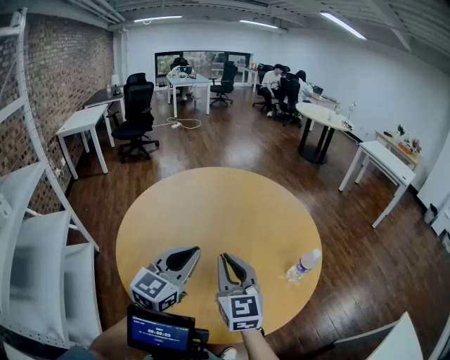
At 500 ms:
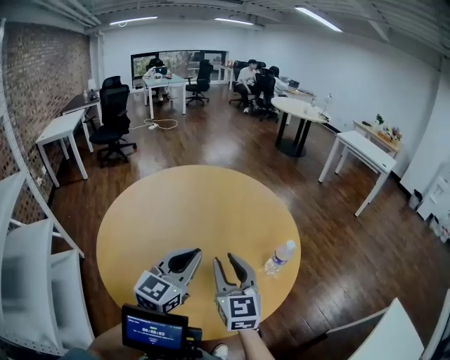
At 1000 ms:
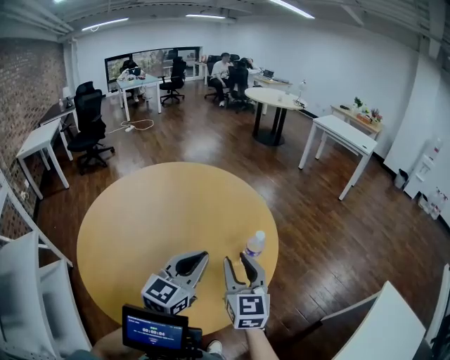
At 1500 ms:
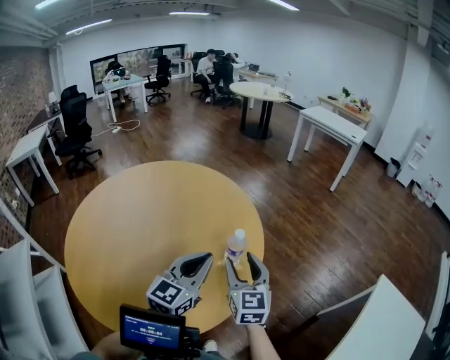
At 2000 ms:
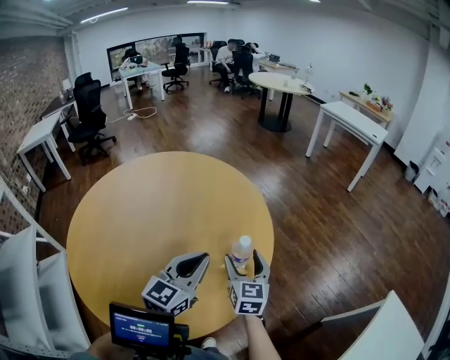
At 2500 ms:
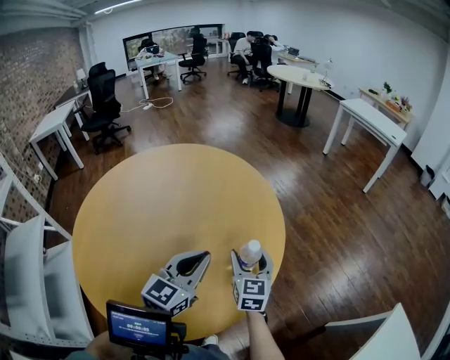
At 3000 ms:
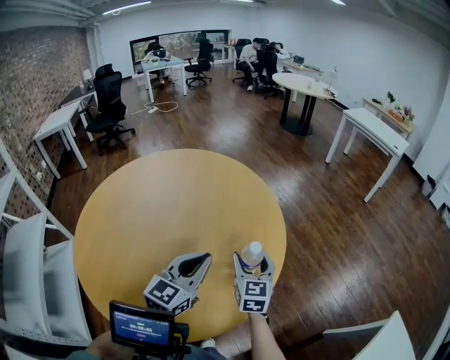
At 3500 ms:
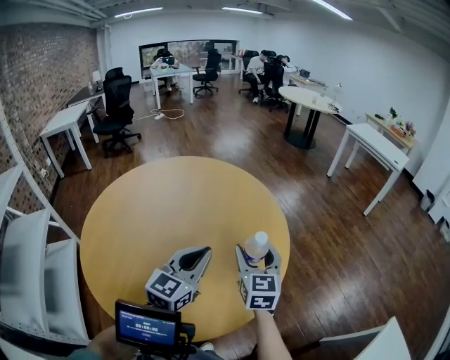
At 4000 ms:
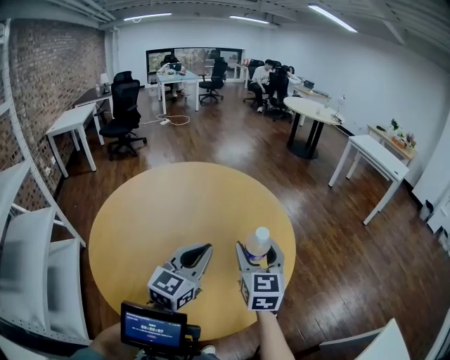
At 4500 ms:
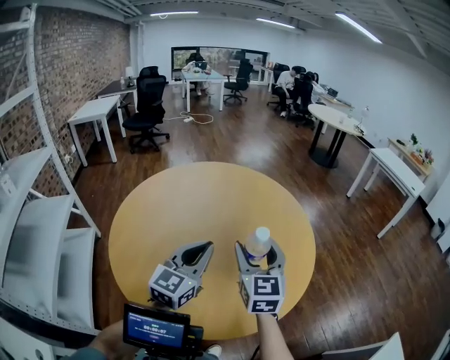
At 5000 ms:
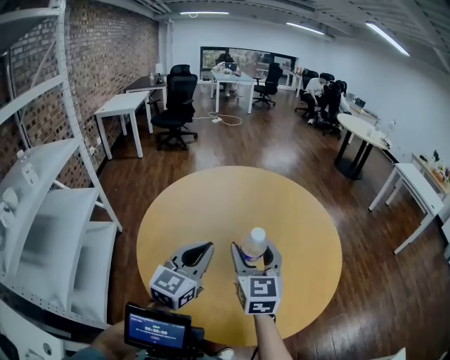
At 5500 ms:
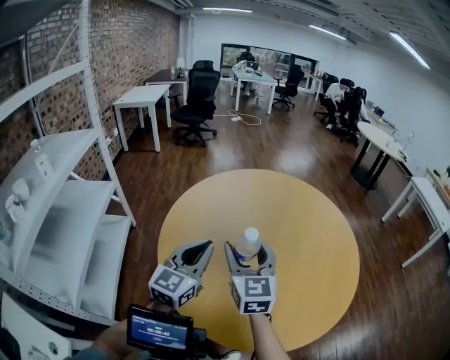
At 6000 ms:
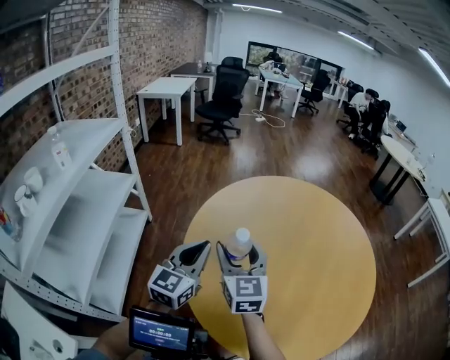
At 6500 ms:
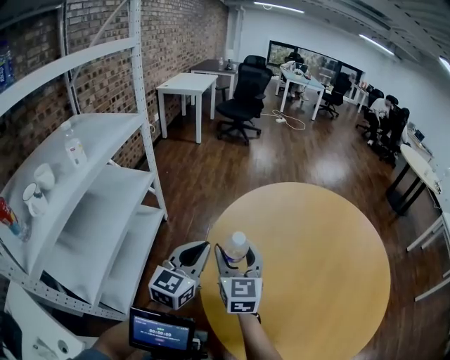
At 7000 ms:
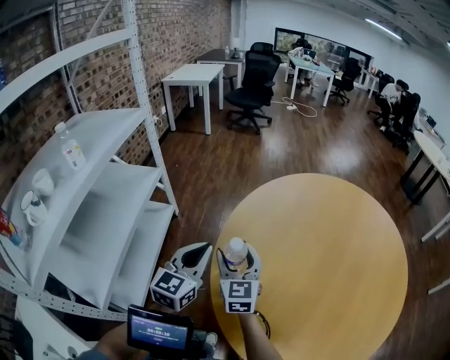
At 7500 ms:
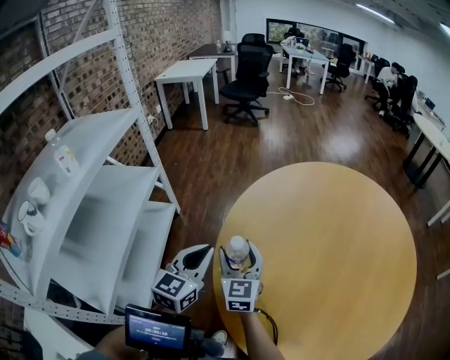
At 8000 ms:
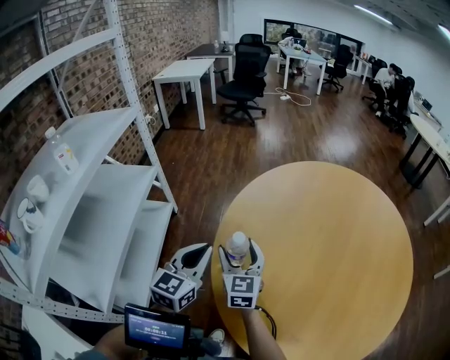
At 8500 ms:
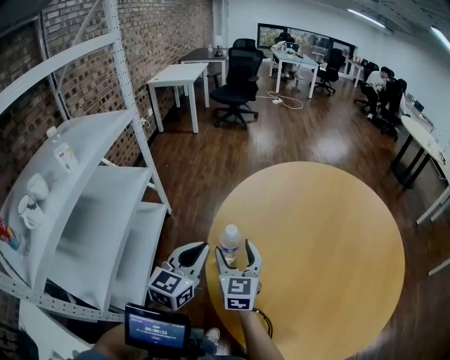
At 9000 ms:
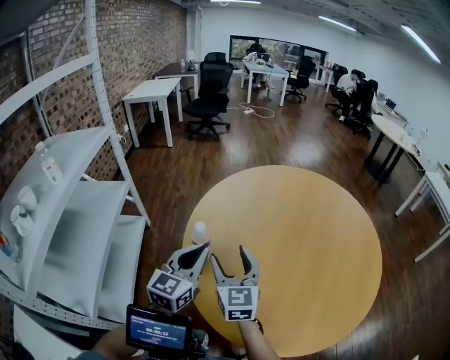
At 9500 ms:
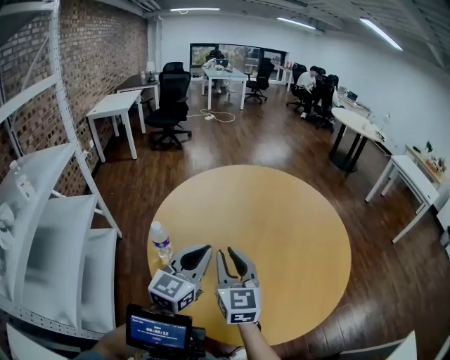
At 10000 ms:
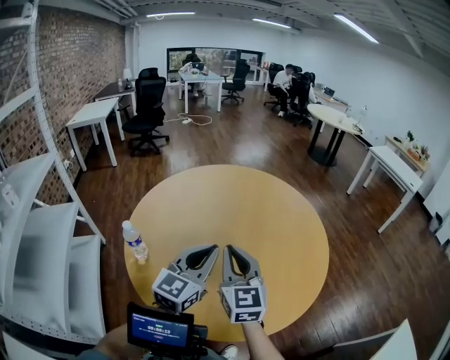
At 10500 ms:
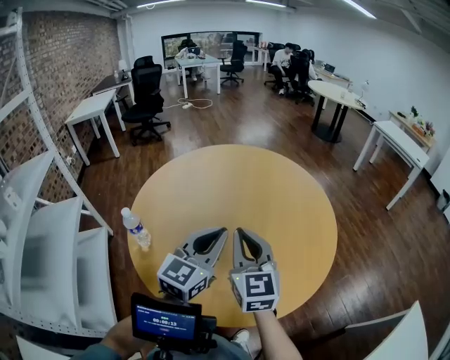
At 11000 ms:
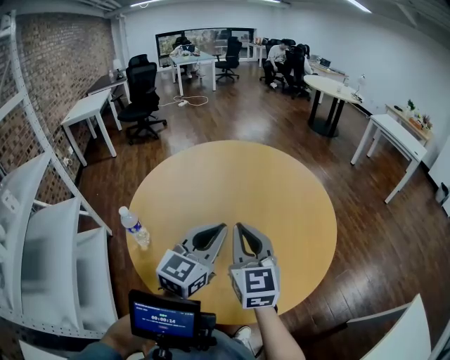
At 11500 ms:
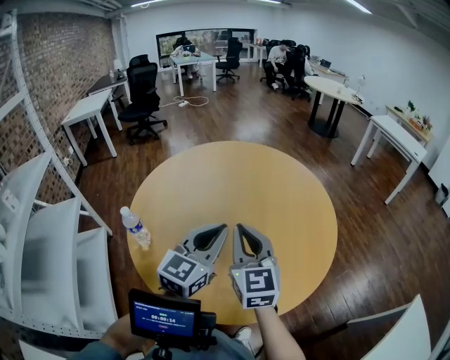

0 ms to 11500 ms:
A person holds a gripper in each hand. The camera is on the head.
0 ms to 2000 ms: The right gripper travels to the right, downward and forward by roughly 35 cm, changes its angle by approximately 30 degrees, and opens its fingers. The left gripper heads to the right, covering approximately 25 cm.
2000 ms to 4000 ms: The left gripper is displaced to the left by approximately 10 cm. Meanwhile the right gripper moves upward and to the left, approximately 15 cm.
4000 ms to 6000 ms: The two grippers travel together, roughly 50 cm. The left gripper swivels some 30 degrees; the right gripper changes its angle by about 30 degrees.
6000 ms to 7500 ms: The right gripper travels downward, to the left and forward by approximately 20 cm; the left gripper travels to the left, downward and forward by some 15 cm.
7500 ms to 9500 ms: The right gripper moves to the right, upward and backward, some 30 cm, and closes its fingers, while the left gripper is displaced to the right by about 25 cm, and changes its angle by some 20 degrees.
9500 ms to 11500 ms: Both grippers move to the right, approximately 15 cm.

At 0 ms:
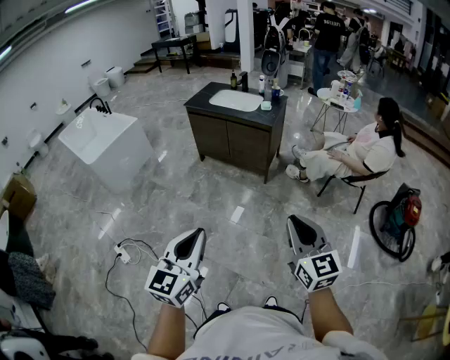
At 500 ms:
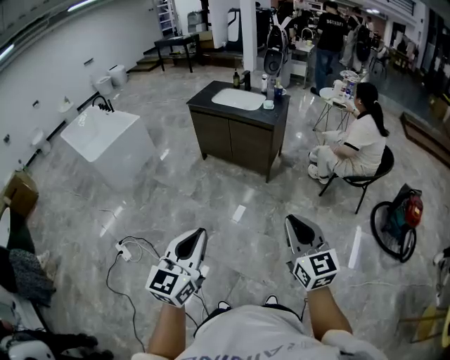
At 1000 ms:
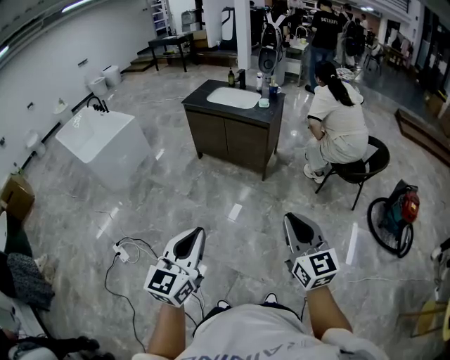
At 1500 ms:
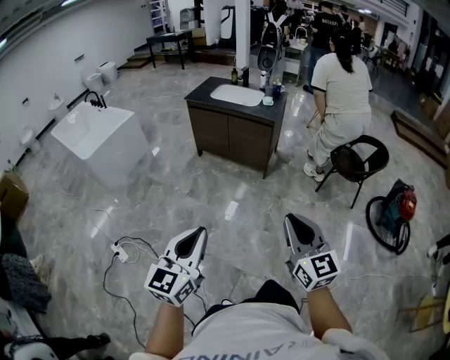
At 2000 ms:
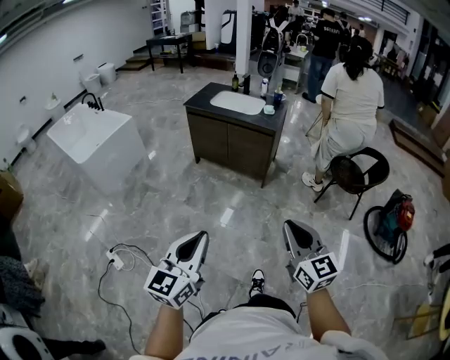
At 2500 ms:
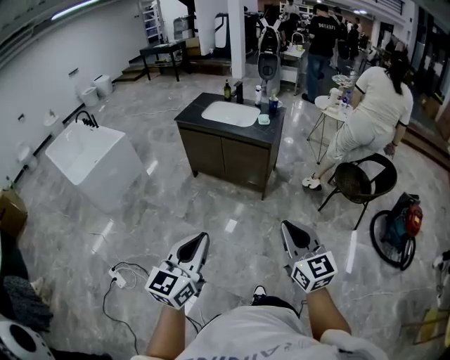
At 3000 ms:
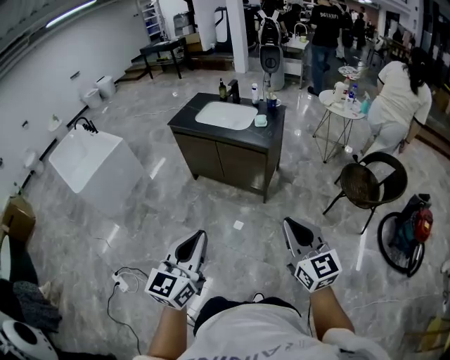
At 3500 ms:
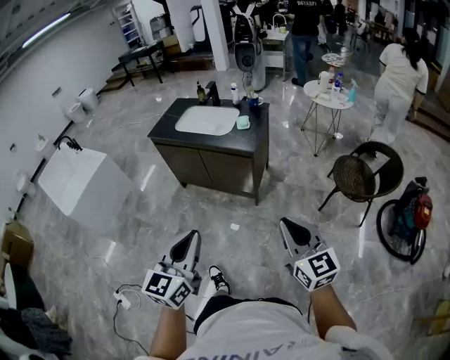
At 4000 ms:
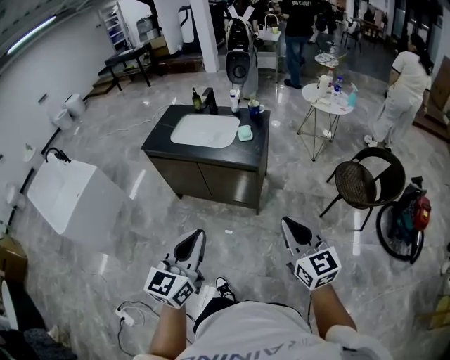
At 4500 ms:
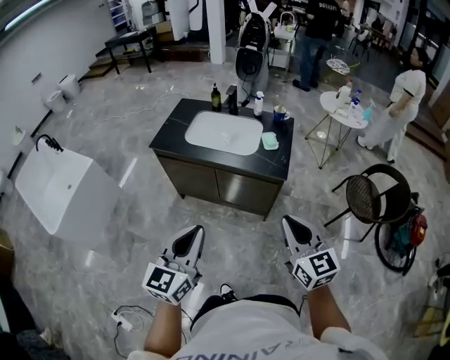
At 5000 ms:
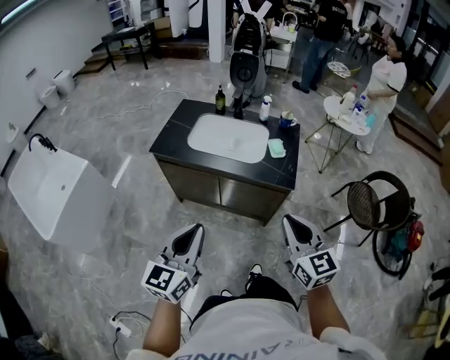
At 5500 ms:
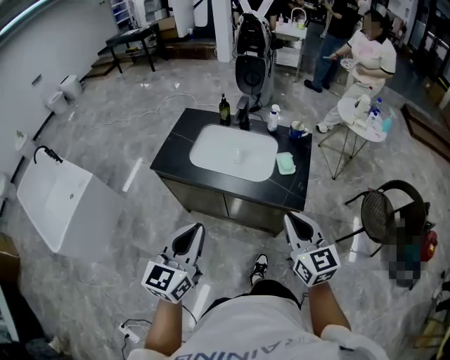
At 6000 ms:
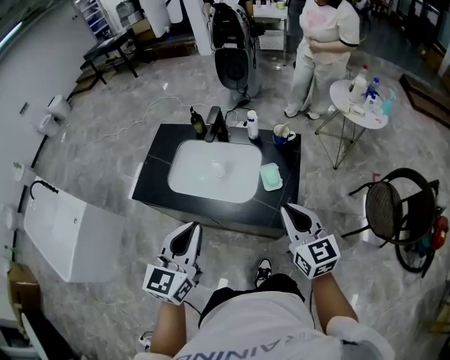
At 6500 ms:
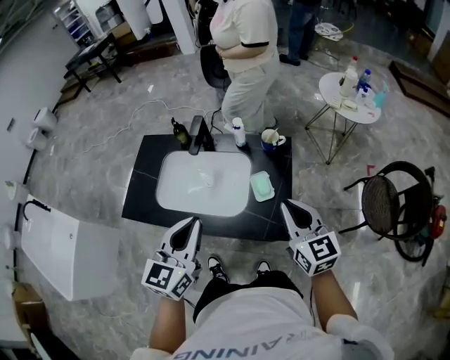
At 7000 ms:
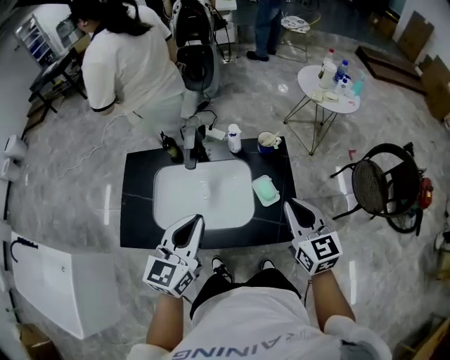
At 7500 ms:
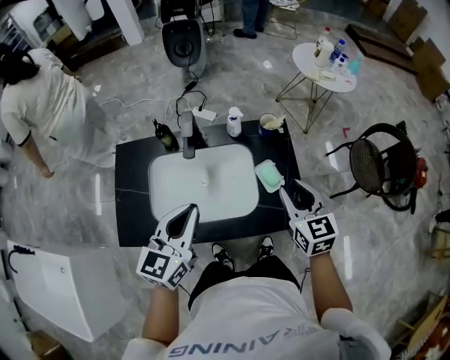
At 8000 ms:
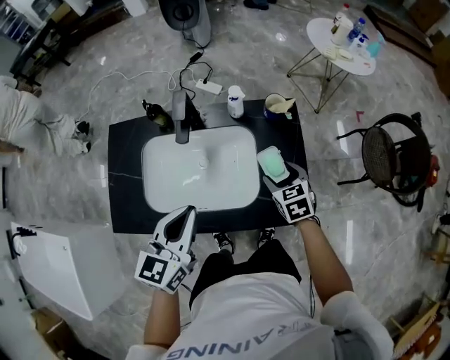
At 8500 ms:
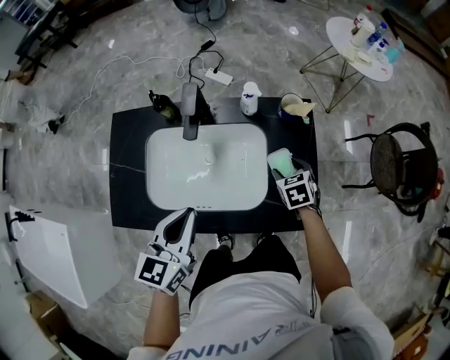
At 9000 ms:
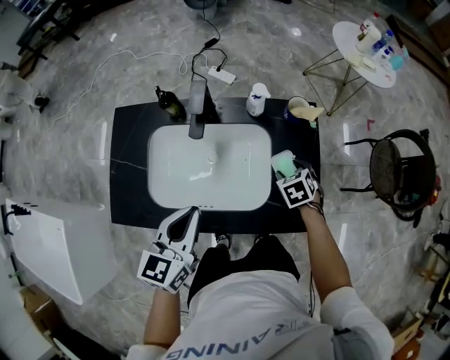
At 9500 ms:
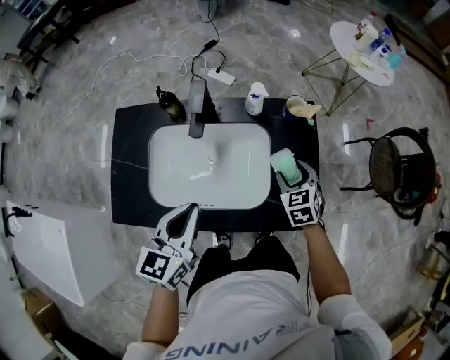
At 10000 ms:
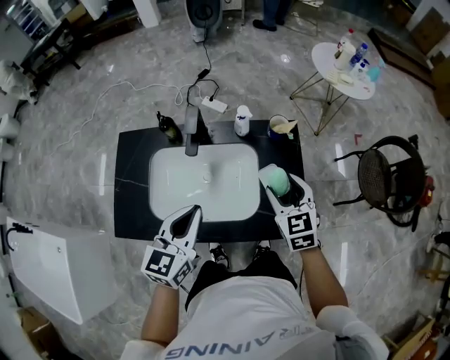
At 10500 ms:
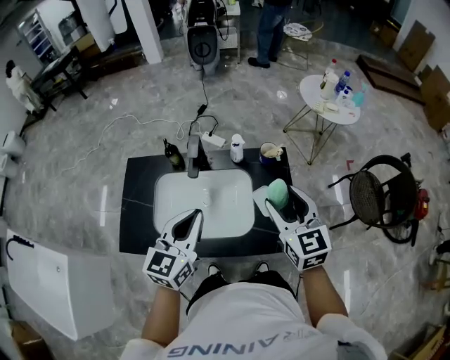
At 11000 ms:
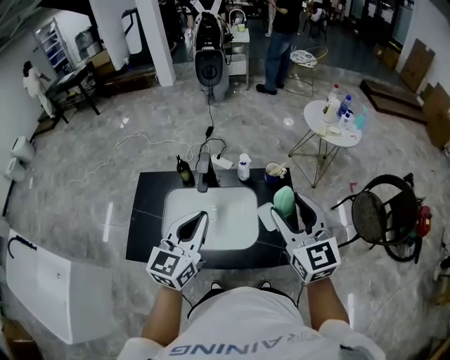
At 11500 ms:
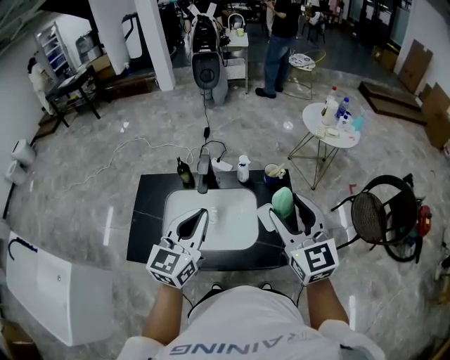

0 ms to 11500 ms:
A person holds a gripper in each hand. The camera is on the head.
0 ms to 2000 ms: The grippers both shift to the left by roughly 10 cm.
2000 ms to 4000 ms: Both grippers are carried forward, roughly 40 cm.
4000 ms to 6000 ms: The pair of grippers is taken forward, some 50 cm.
6000 ms to 7500 ms: The right gripper shifts roughly 15 cm forward and downward, and changes its angle by about 30 degrees. The left gripper goes roughly 20 cm forward and to the left, and changes its angle by some 20 degrees.
7500 ms to 9500 ms: The left gripper heads downward, covering approximately 10 cm, while the right gripper goes approximately 20 cm downward and forward, rotates approximately 30 degrees, and opens up.
9500 ms to 11500 ms: The left gripper travels upward by approximately 15 cm, and changes its angle by some 20 degrees; the right gripper goes some 35 cm upward, and points its fingers approximately 40 degrees further upward.

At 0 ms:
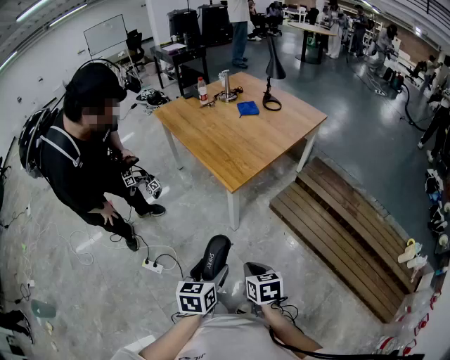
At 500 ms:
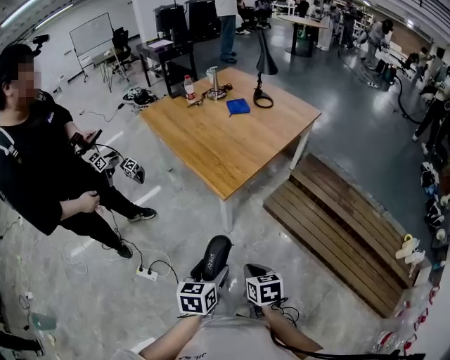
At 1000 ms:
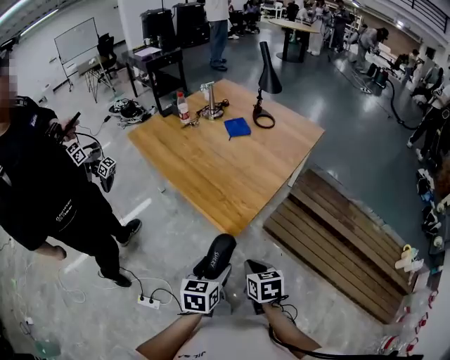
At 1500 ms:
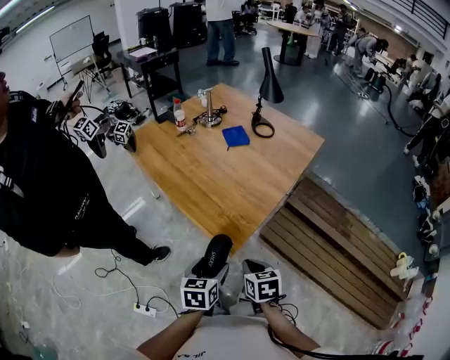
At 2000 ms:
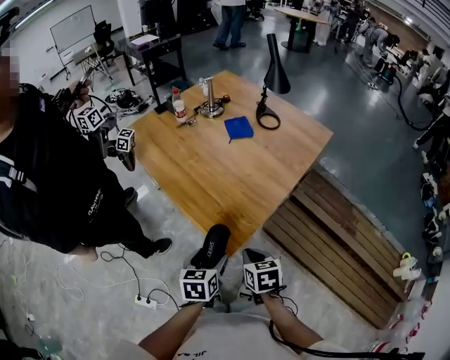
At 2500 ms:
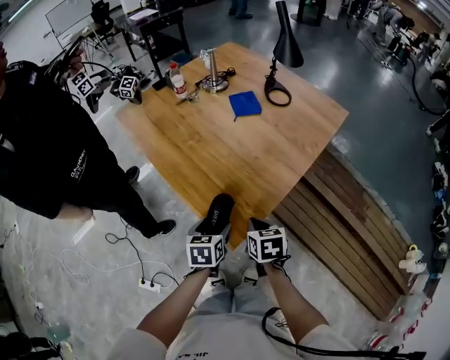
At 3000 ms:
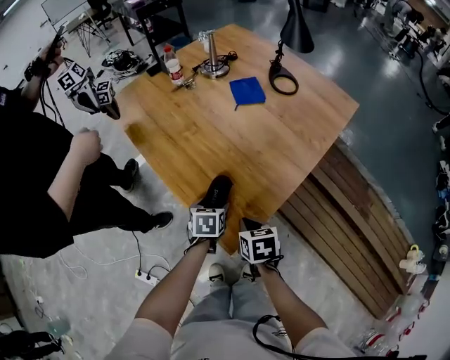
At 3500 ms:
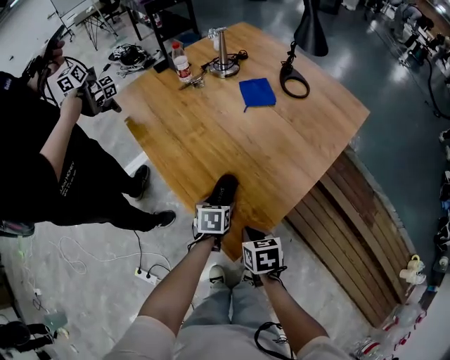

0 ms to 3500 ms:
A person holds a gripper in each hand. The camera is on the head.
0 ms to 2000 ms: The two grippers travel together, forward, about 40 cm.
2000 ms to 3500 ms: The left gripper shifts some 30 cm forward and downward. The right gripper is displaced forward and downward by about 15 cm.
